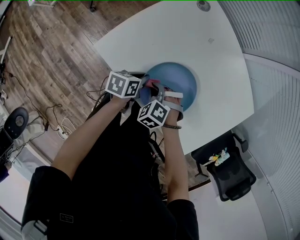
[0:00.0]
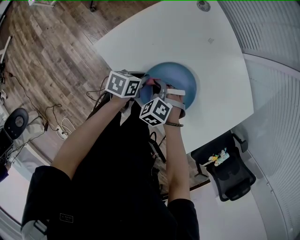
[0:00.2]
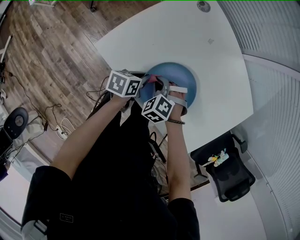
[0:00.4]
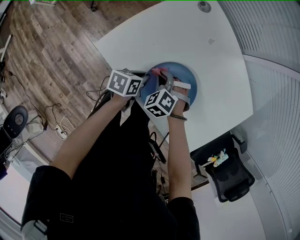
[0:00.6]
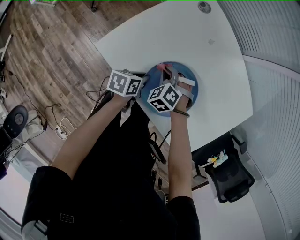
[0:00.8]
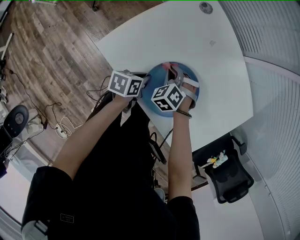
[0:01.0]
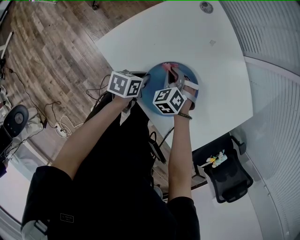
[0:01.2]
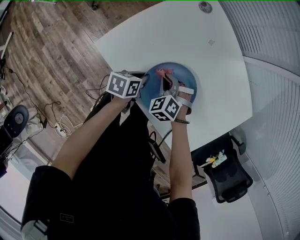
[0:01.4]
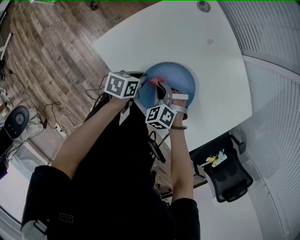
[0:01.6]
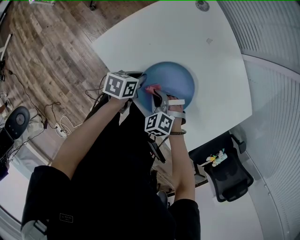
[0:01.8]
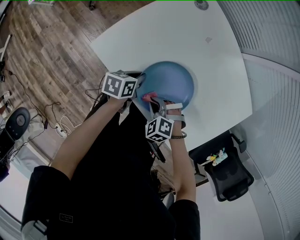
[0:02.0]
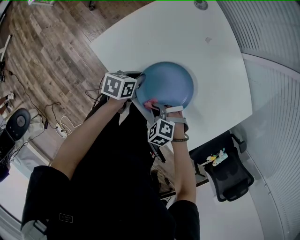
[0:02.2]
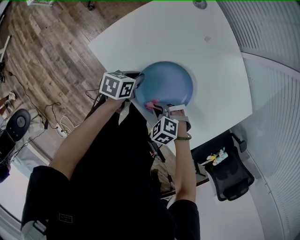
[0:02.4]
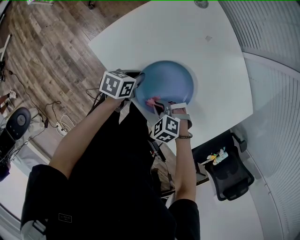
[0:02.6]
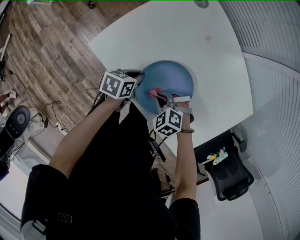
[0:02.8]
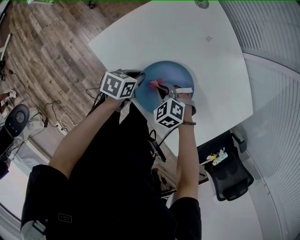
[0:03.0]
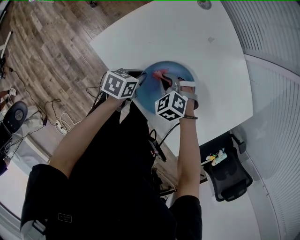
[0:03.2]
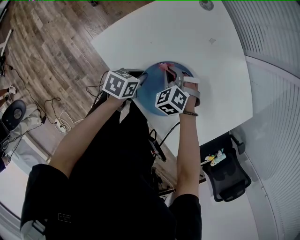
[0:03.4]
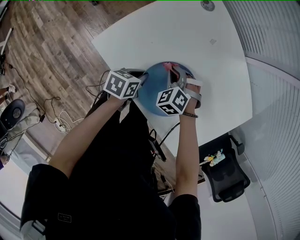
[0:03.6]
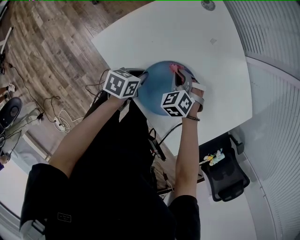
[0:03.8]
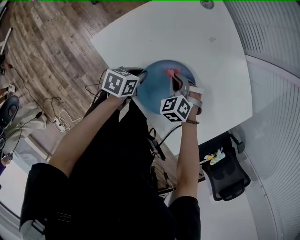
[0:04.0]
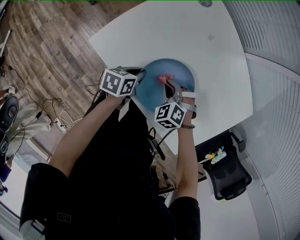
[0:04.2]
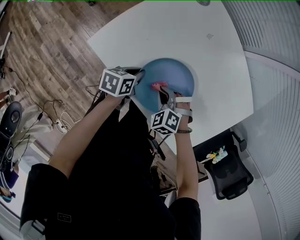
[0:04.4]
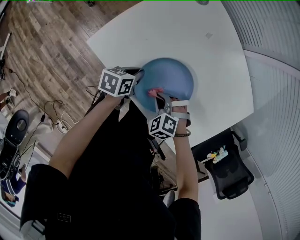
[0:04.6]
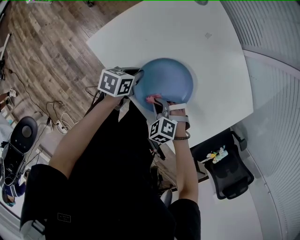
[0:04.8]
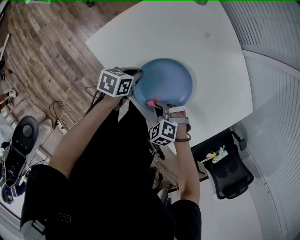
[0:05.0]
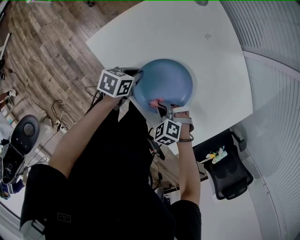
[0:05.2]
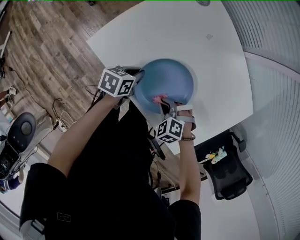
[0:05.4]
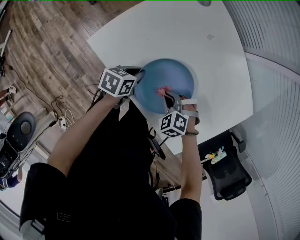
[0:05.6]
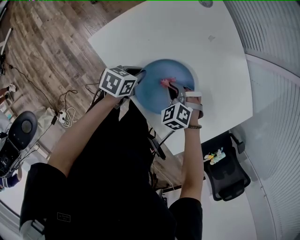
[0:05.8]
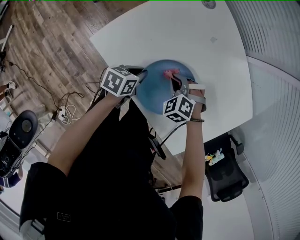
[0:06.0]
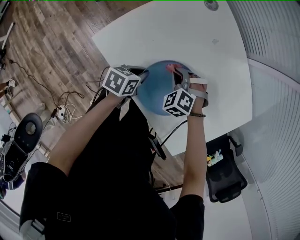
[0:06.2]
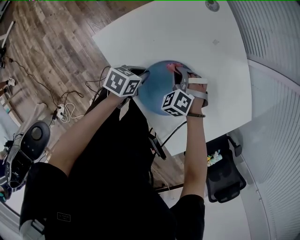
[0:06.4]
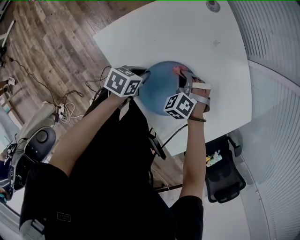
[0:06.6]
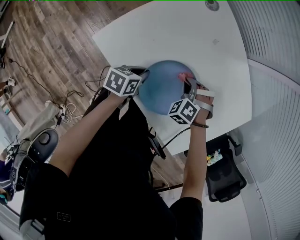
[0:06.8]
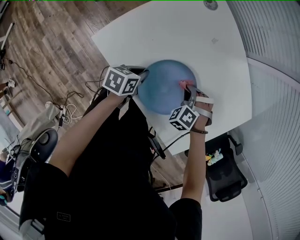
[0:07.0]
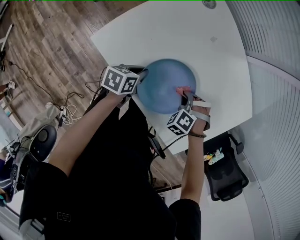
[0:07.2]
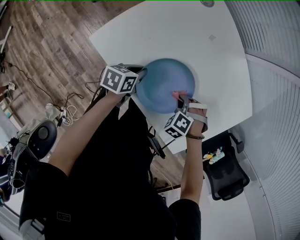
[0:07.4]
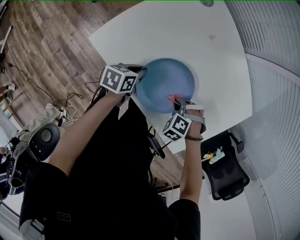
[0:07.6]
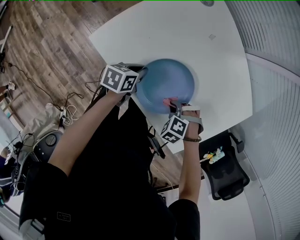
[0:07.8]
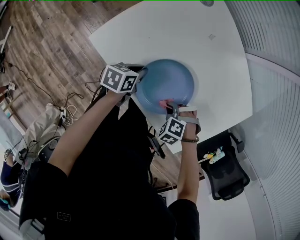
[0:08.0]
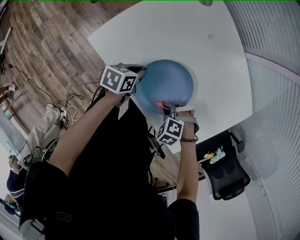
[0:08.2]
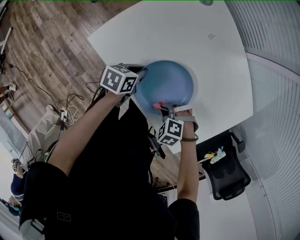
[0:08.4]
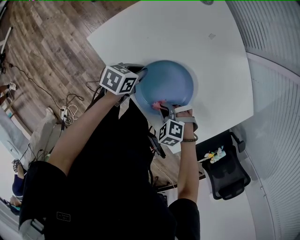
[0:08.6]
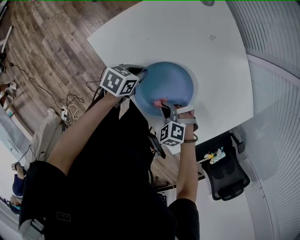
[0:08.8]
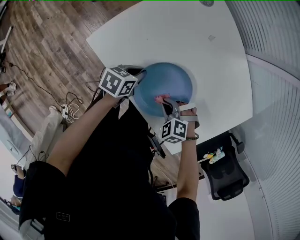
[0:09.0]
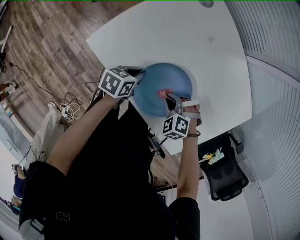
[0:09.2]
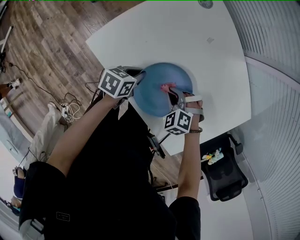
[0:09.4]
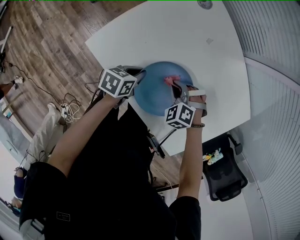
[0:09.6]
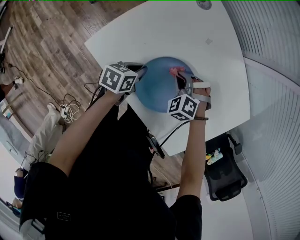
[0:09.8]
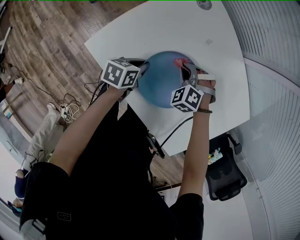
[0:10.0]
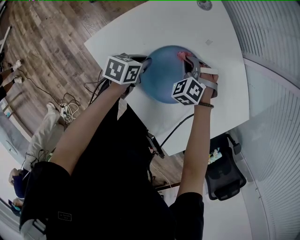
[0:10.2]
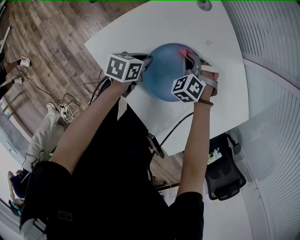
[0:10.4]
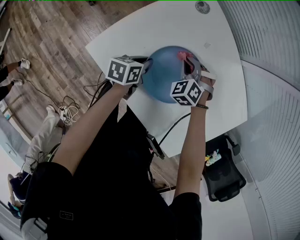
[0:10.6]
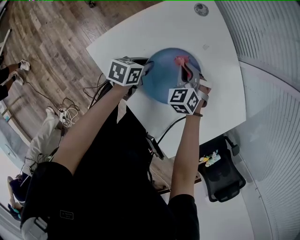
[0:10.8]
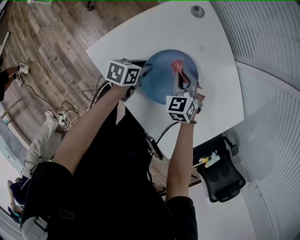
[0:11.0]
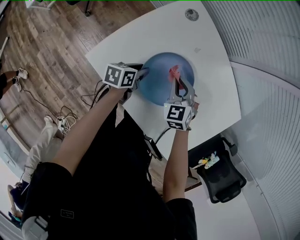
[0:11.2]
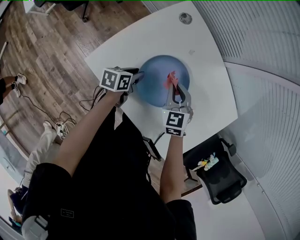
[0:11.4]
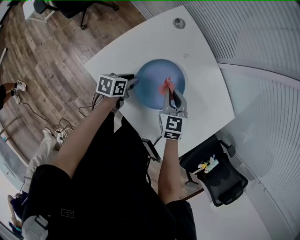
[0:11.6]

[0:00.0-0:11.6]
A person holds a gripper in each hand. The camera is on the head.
0:00.0 to 0:01.4: The right gripper goes roughly 5 cm forward.
0:01.4 to 0:02.8: The right gripper changes its angle by approximately 20 degrees.
0:05.8 to 0:07.2: The right gripper changes place by approximately 10 cm, and swivels some 20 degrees.
0:07.2 to 0:08.8: The right gripper changes place by roughly 10 cm, and changes its angle by approximately 30 degrees.
0:08.8 to 0:10.2: The right gripper changes place by about 25 cm, and rotates roughly 30 degrees. Meanwhile the left gripper changes place by roughly 10 cm.
0:10.2 to 0:11.6: The left gripper opens, while the right gripper travels upward and backward by about 15 cm, and twists some 60 degrees clockwise, seen from behind.

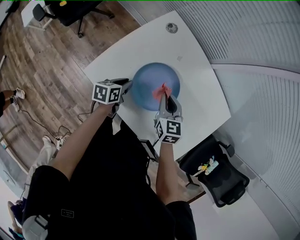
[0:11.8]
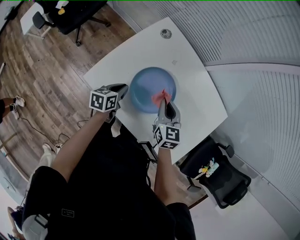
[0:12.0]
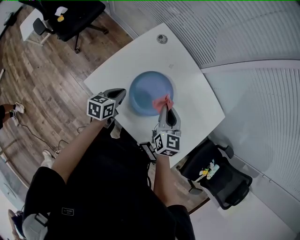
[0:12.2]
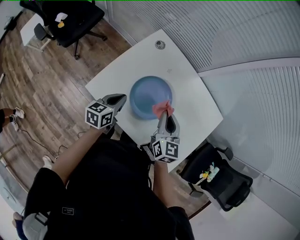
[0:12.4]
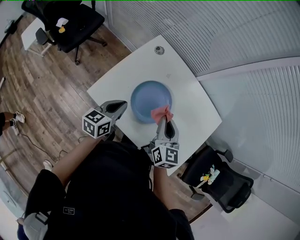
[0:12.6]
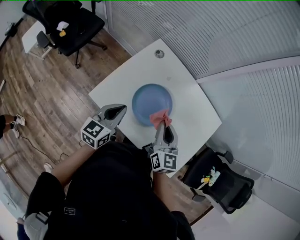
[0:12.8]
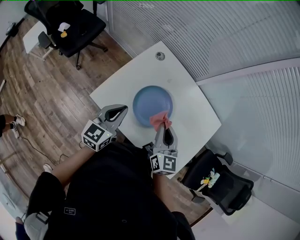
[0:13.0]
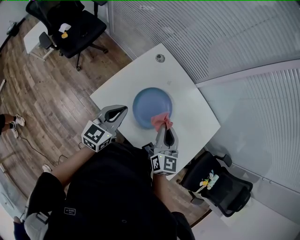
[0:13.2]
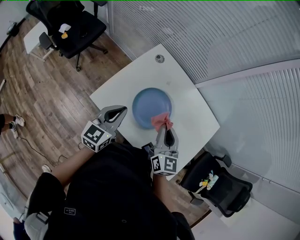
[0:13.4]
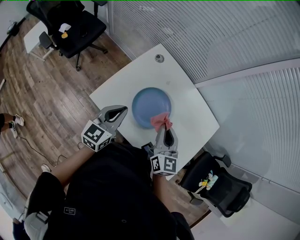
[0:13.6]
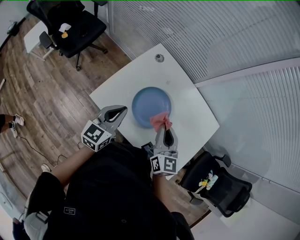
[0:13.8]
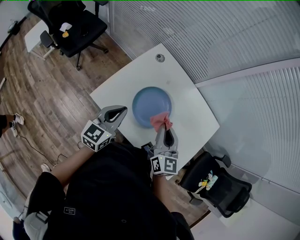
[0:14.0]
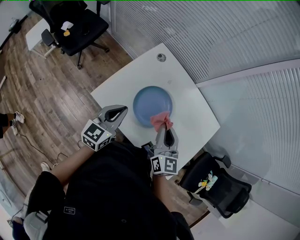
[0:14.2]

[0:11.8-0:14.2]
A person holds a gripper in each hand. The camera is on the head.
0:11.8 to 0:13.0: The right gripper heads upward and backward, covering roughly 15 cm, and turns by approximately 20 degrees; the left gripper heads upward, covering some 25 cm, swivels some 40 degrees, and closes.
0:13.0 to 0:14.2: The grippers stay close to where they were, moving slightly.

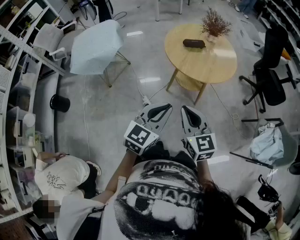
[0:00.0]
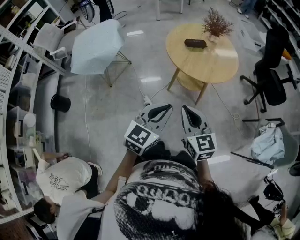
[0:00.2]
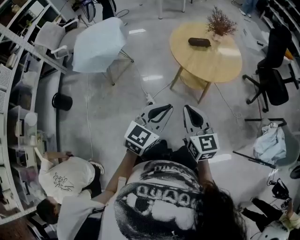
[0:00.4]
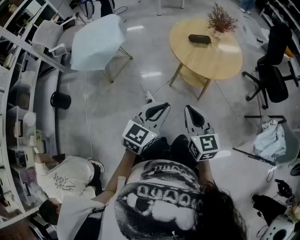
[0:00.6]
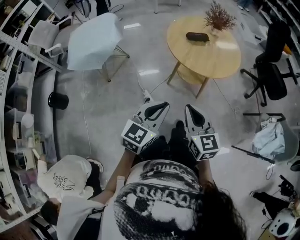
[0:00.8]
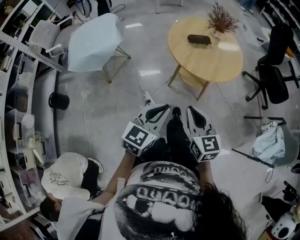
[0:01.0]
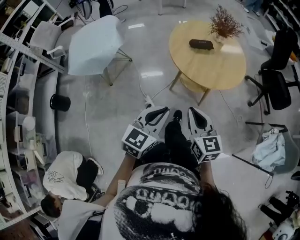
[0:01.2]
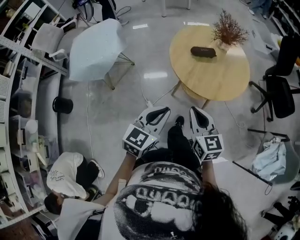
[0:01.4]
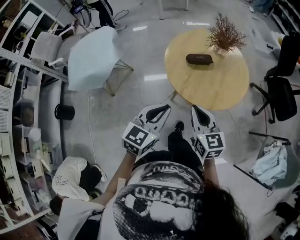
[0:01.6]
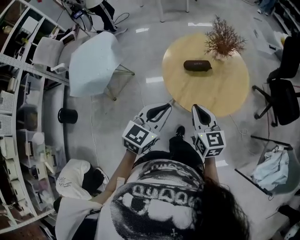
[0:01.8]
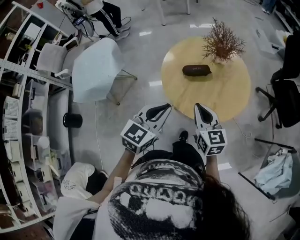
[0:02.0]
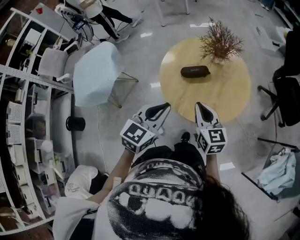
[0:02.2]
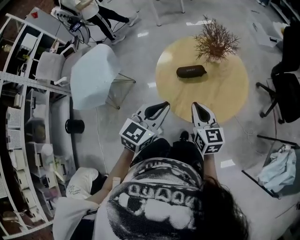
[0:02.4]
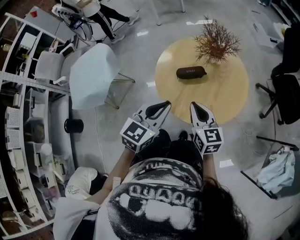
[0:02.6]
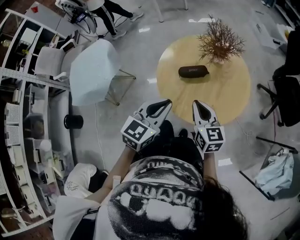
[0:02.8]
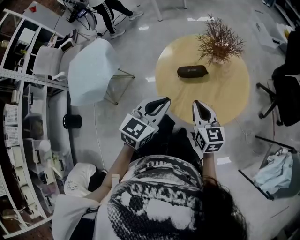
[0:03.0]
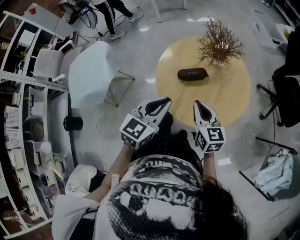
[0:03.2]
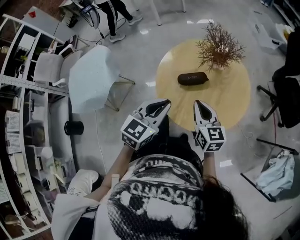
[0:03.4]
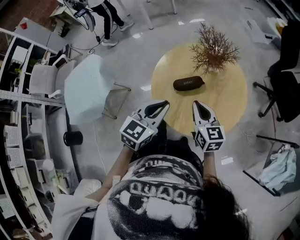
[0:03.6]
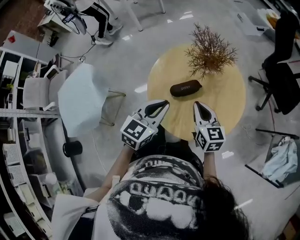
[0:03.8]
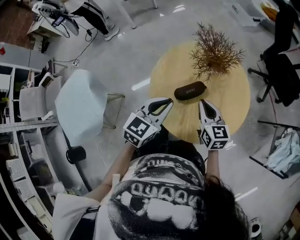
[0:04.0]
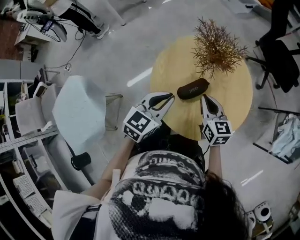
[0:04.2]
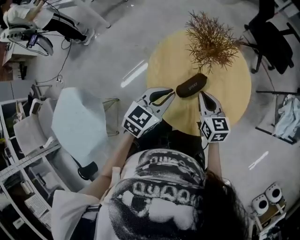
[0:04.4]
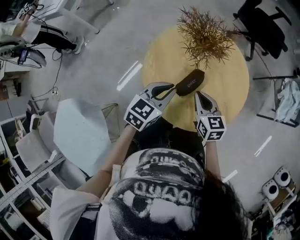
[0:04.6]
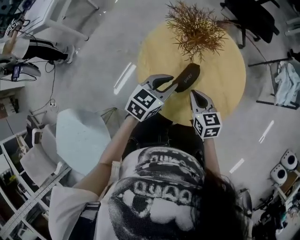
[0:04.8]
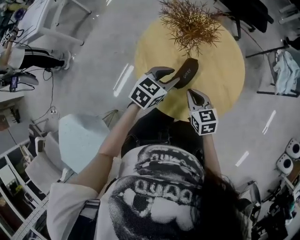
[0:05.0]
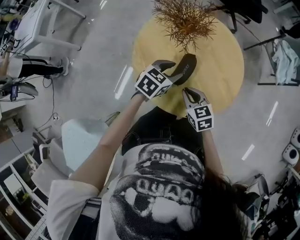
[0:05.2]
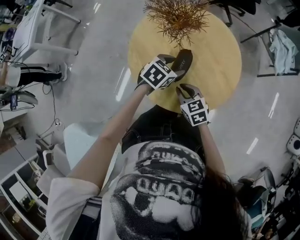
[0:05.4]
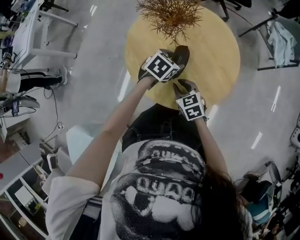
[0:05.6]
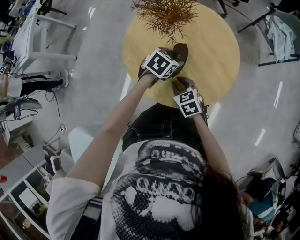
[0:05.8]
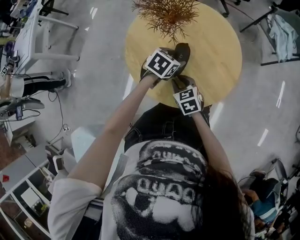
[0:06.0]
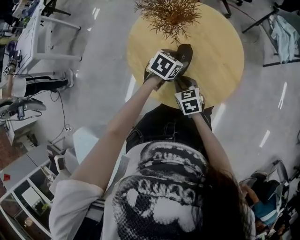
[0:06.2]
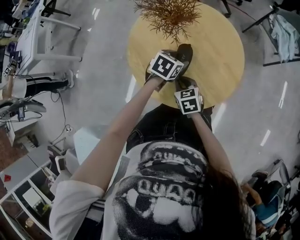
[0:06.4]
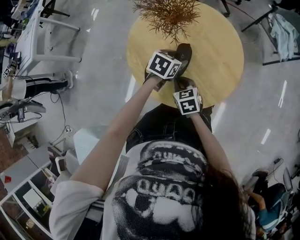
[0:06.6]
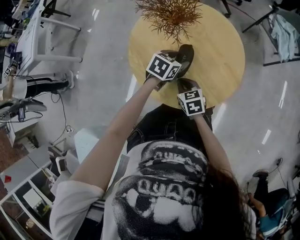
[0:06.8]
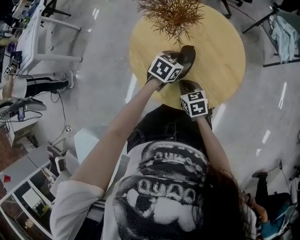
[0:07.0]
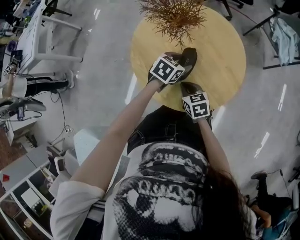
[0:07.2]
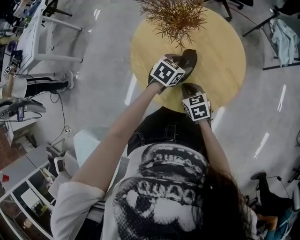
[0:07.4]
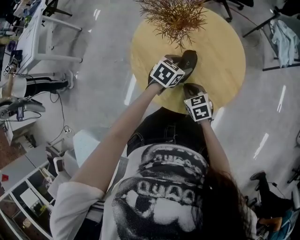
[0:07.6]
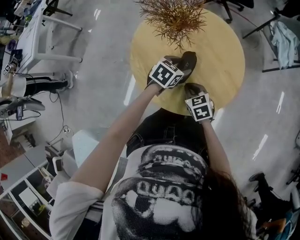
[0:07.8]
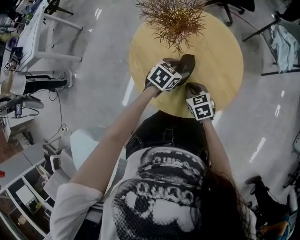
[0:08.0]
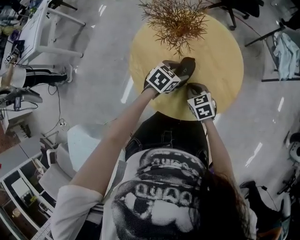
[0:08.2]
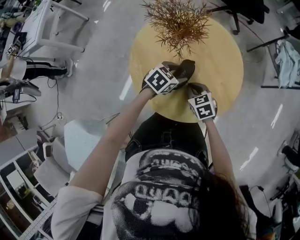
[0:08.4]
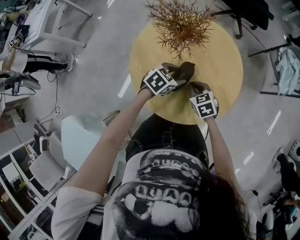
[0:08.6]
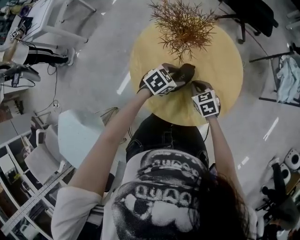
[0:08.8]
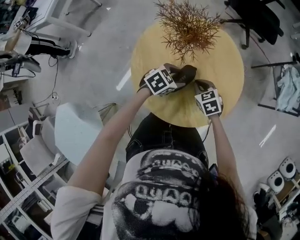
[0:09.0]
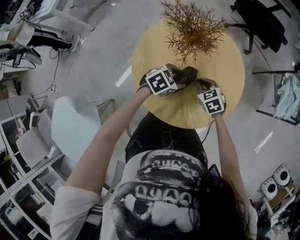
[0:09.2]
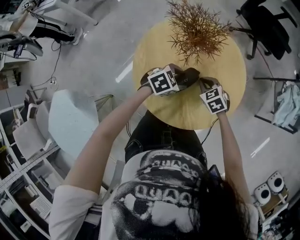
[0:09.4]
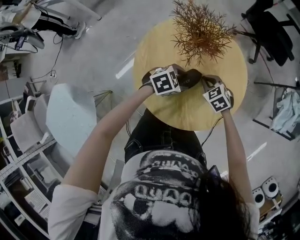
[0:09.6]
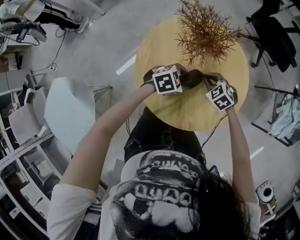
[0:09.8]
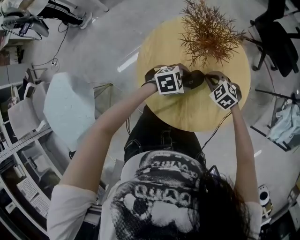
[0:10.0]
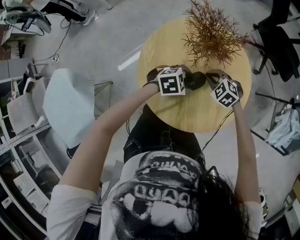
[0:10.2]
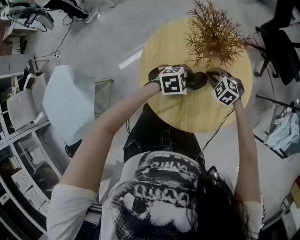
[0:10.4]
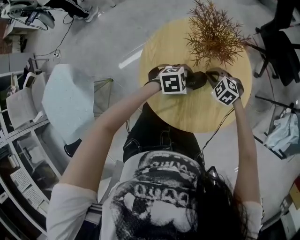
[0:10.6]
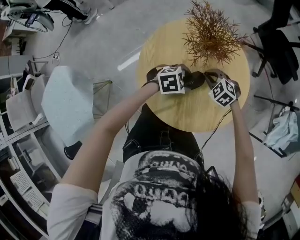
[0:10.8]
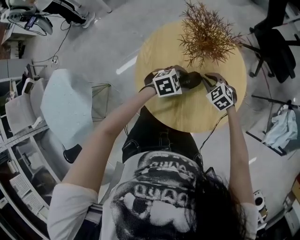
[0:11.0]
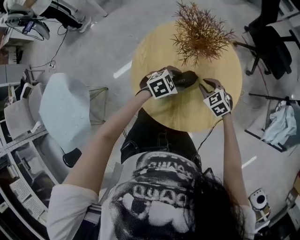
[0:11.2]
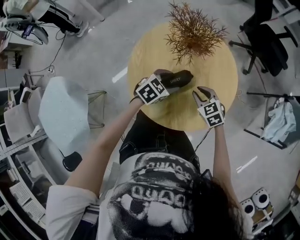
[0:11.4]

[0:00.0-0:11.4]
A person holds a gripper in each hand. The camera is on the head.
0:00.0 to 0:01.4: The right gripper is displaced forward and downward by some 15 cm. The left gripper heads forward, covering about 15 cm.
0:01.4 to 0:02.8: The two grippers go roughly 20 cm forward.
0:02.8 to 0:04.2: The left gripper moves approximately 20 cm, and changes its angle by some 30 degrees, while the right gripper ends up about 15 cm from where it was, and turns by about 30 degrees.
0:04.2 to 0:05.6: Both grippers travel together downward, some 15 cm. The left gripper turns by some 50 degrees, and opens up, while the right gripper rotates roughly 30 degrees, and opens.
0:05.6 to 0:07.2: The grippers stay close to where they were, moving slightly.
0:07.2 to 0:08.6: The right gripper shifts approximately 10 cm forward and to the right, and changes its angle by approximately 20 degrees.
0:08.6 to 0:10.0: The right gripper moves some 10 cm, and rotates around the line of its fingers by roughly 50 degrees, counterclockwise from behind.
0:10.0 to 0:11.4: The right gripper moves some 5 cm, swivels approximately 20 degrees, and opens up; the left gripper rotates approximately 20 degrees.
